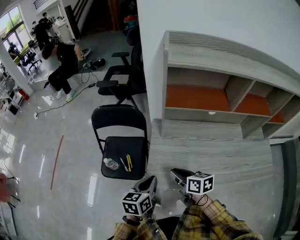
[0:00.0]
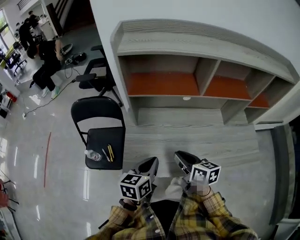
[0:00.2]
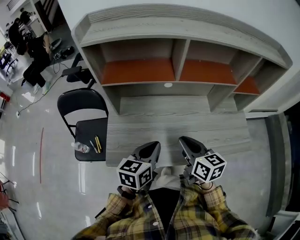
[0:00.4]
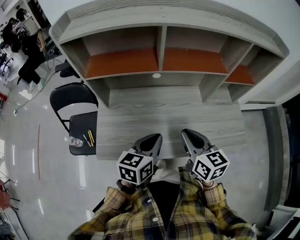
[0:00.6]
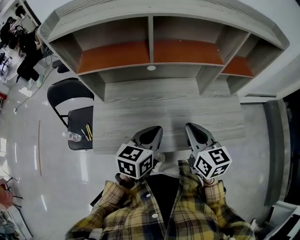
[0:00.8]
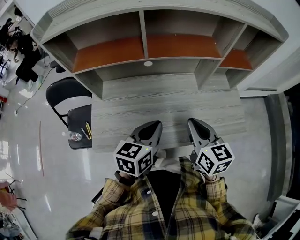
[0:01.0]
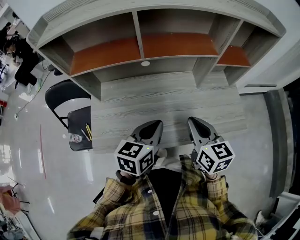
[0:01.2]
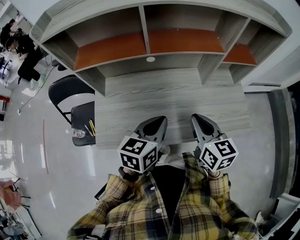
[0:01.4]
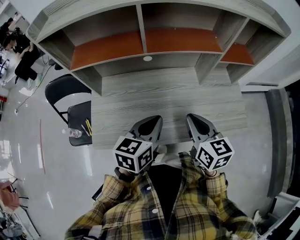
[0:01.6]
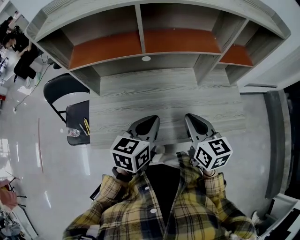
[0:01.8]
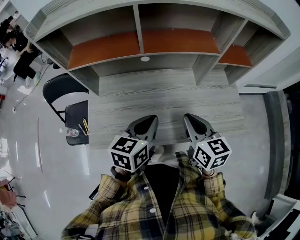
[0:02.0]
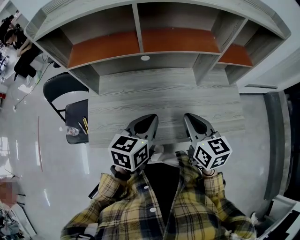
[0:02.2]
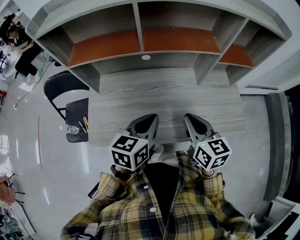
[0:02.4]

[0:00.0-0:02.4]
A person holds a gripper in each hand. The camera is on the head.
0:00.0 to 0:01.2: The left gripper ends up about 35 cm from where it was, and changes its angle by about 20 degrees, while the right gripper shifts by about 40 cm, and swivels about 40 degrees.
0:01.2 to 0:02.4: Both grippers stay about where they are.

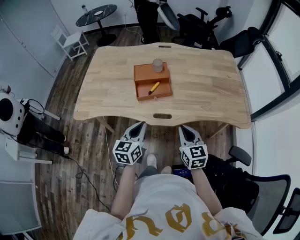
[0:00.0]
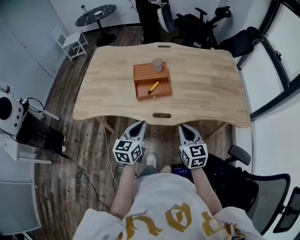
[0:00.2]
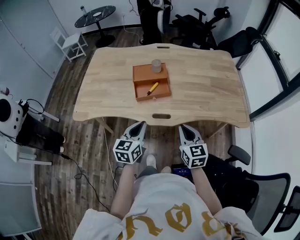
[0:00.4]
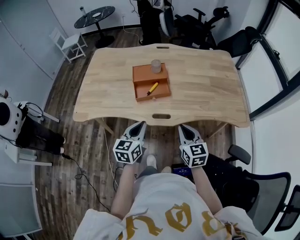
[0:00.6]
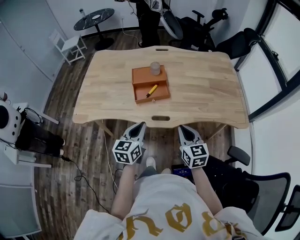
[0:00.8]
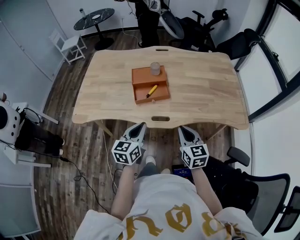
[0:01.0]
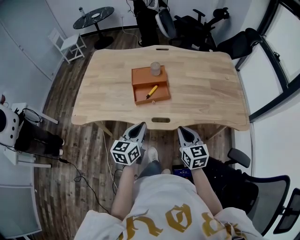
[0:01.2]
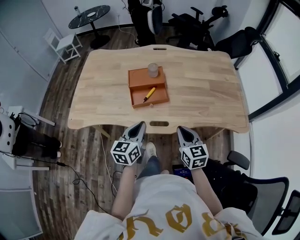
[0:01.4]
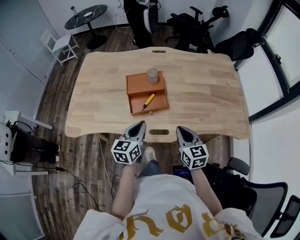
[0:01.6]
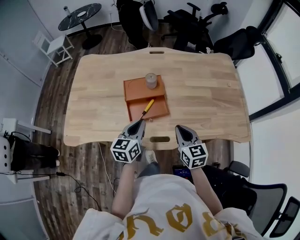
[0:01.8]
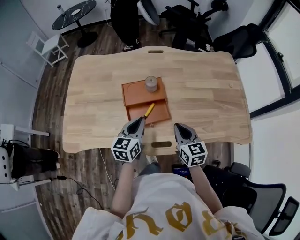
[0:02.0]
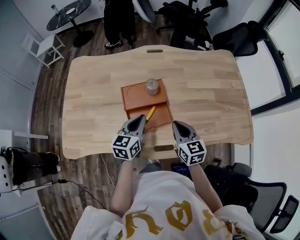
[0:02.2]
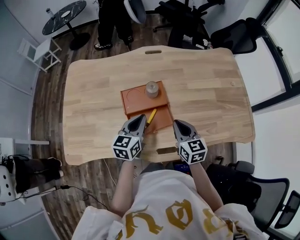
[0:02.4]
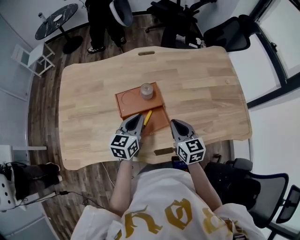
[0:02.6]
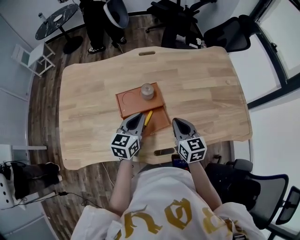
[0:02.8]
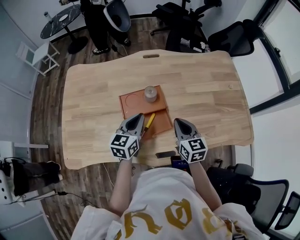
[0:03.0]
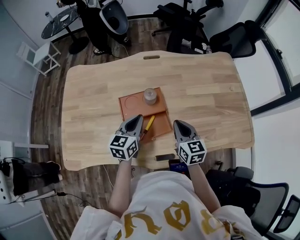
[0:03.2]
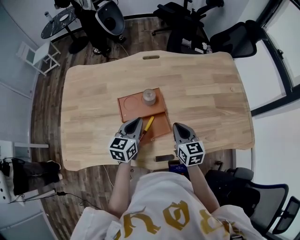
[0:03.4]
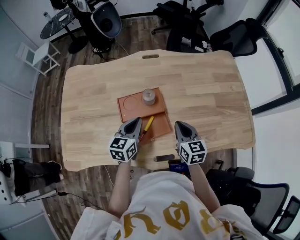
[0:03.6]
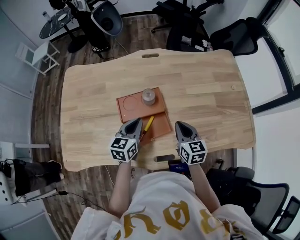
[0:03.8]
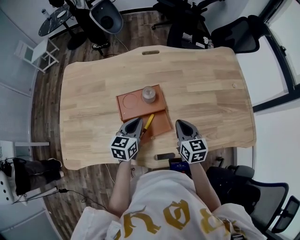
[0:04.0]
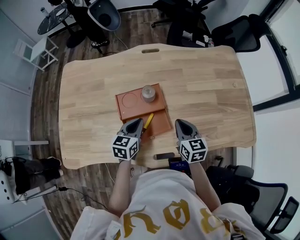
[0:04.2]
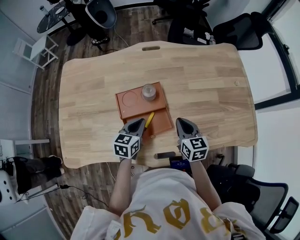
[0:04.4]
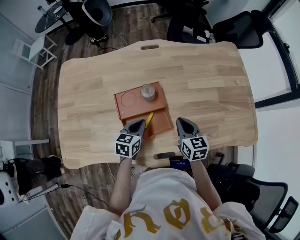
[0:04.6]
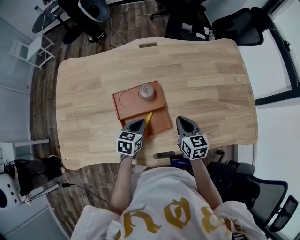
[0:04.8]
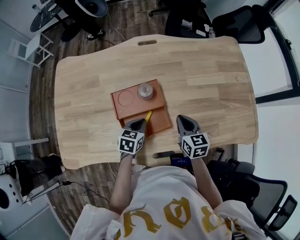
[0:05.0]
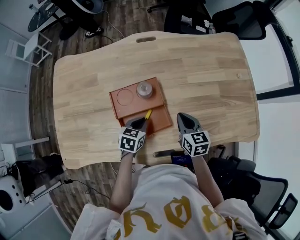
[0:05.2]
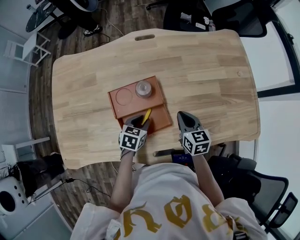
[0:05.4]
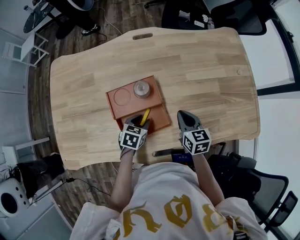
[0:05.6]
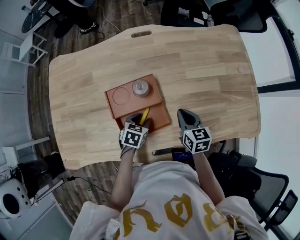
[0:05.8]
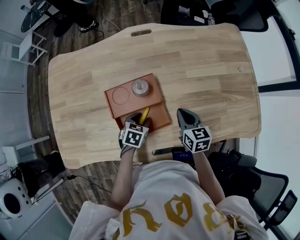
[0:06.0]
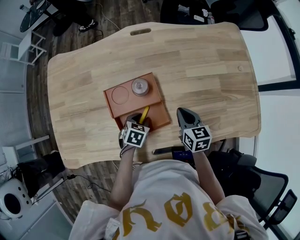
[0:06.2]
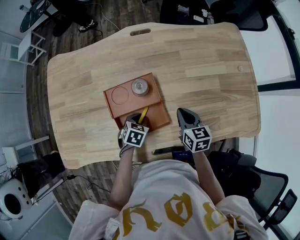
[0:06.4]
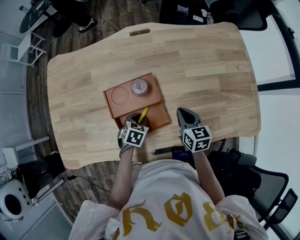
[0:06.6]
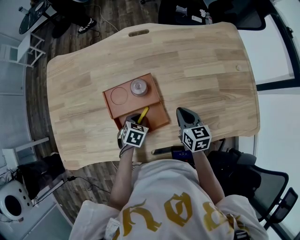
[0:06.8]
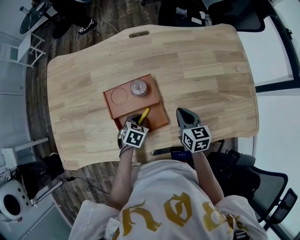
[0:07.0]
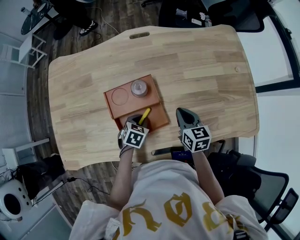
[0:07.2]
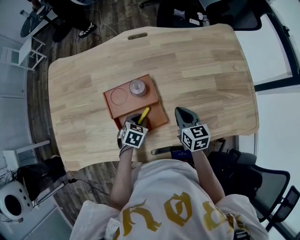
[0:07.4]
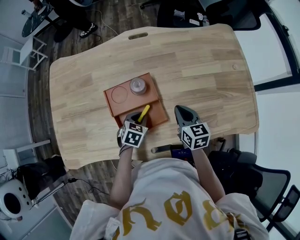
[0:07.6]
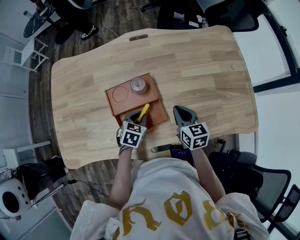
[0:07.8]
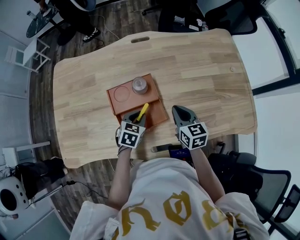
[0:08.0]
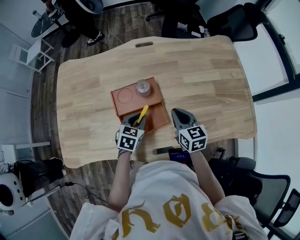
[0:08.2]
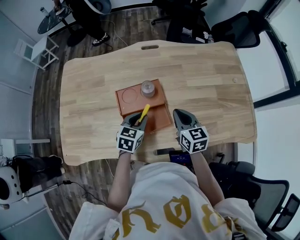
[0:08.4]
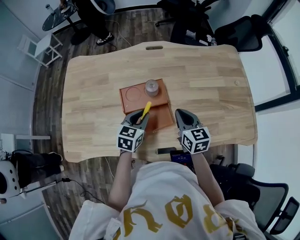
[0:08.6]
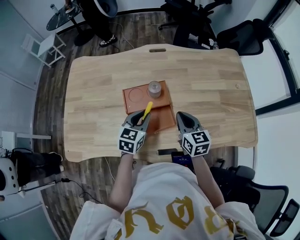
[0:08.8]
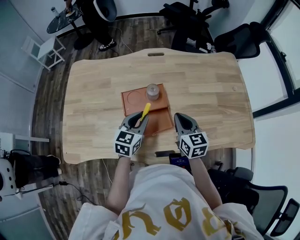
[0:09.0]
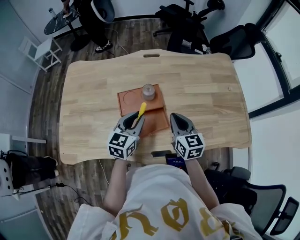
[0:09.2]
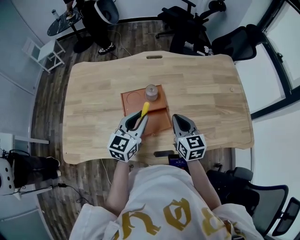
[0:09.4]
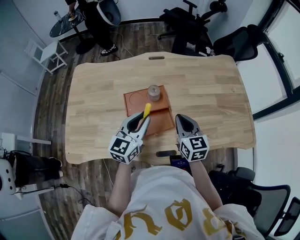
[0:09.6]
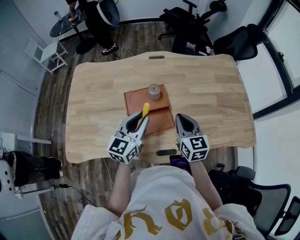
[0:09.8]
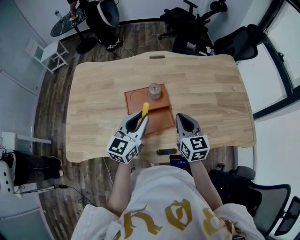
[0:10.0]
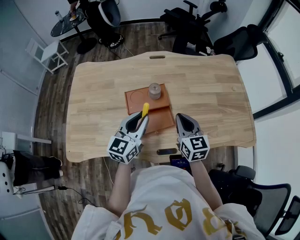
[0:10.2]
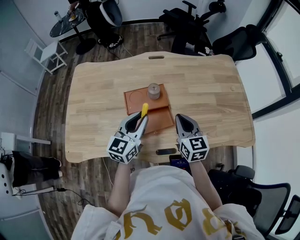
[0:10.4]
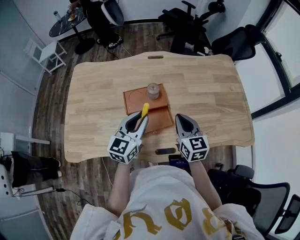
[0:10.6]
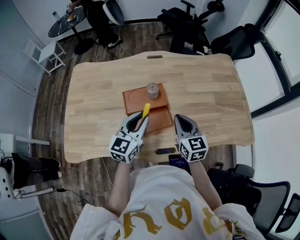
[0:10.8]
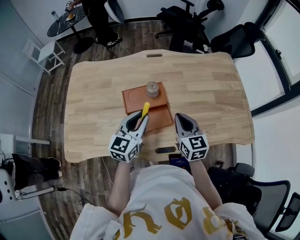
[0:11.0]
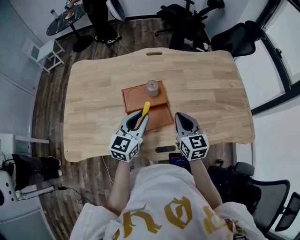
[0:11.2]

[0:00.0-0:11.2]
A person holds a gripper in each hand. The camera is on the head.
0:00.0 to 0:01.6: Both grippers travel together forward, some 10 cm.
0:01.6 to 0:03.2: The two grippers go roughly 20 cm forward.
0:03.2 to 0:04.8: The right gripper heads downward, covering approximately 5 cm, while the left gripper moves downward, some 10 cm, and swivels roughly 20 degrees.
0:04.8 to 0:06.4: The left gripper is displaced downward by roughly 10 cm, and rotates about 20 degrees.
0:06.4 to 0:08.0: The grippers both shift upward by some 5 cm.
0:08.0 to 0:09.6: The right gripper heads upward, covering about 10 cm; the left gripper goes approximately 20 cm upward, and points its fingers approximately 40 degrees further upward.
0:09.6 to 0:11.2: The grippers stay close to where they were, moving slightly.

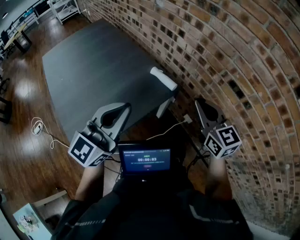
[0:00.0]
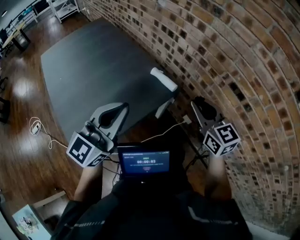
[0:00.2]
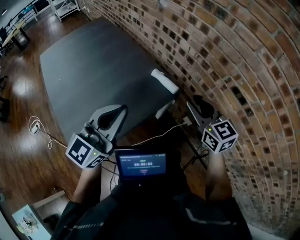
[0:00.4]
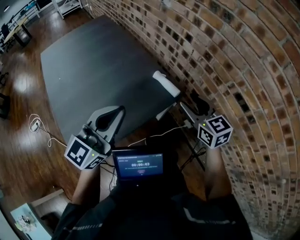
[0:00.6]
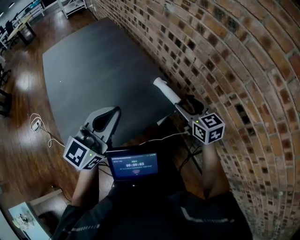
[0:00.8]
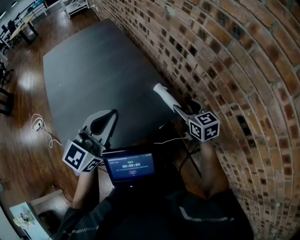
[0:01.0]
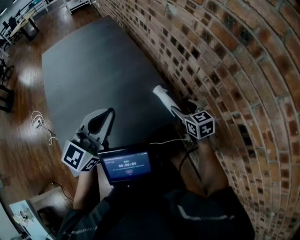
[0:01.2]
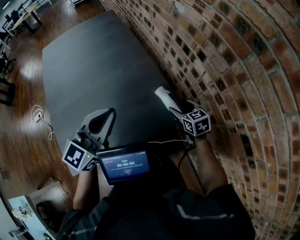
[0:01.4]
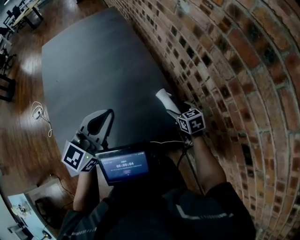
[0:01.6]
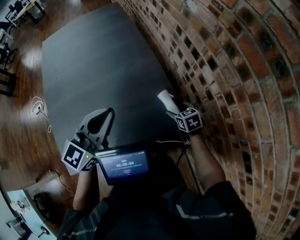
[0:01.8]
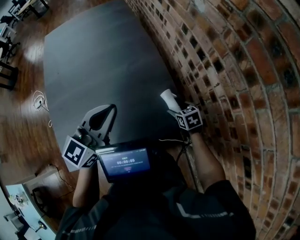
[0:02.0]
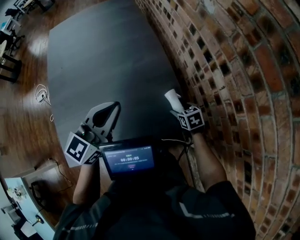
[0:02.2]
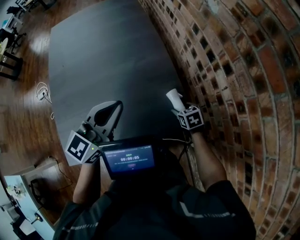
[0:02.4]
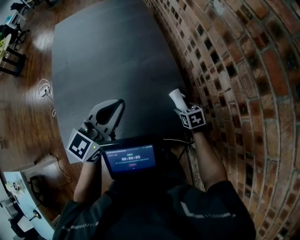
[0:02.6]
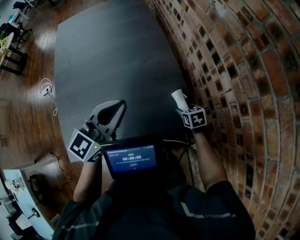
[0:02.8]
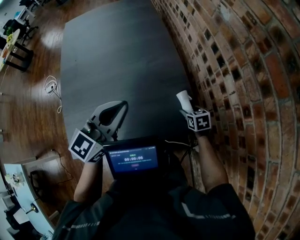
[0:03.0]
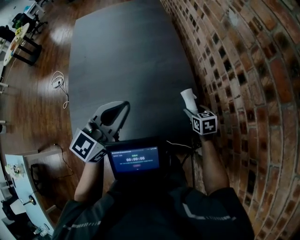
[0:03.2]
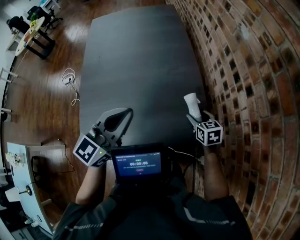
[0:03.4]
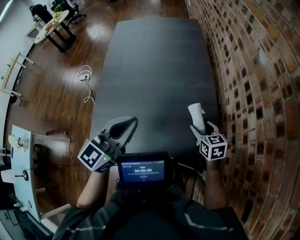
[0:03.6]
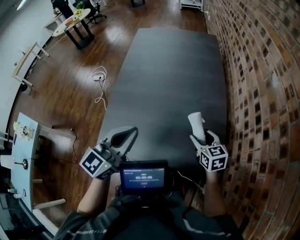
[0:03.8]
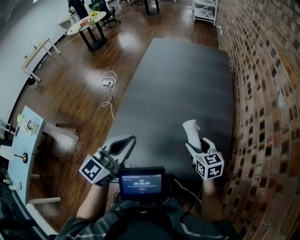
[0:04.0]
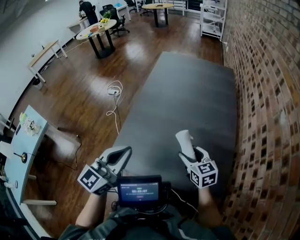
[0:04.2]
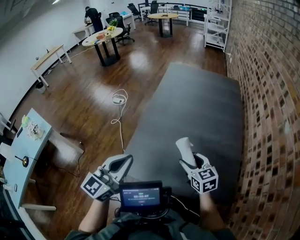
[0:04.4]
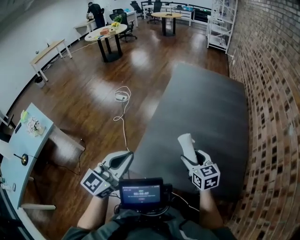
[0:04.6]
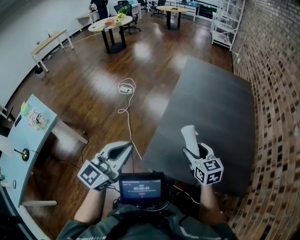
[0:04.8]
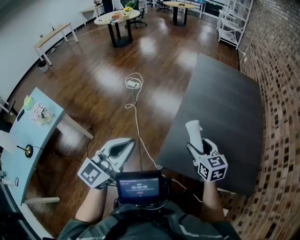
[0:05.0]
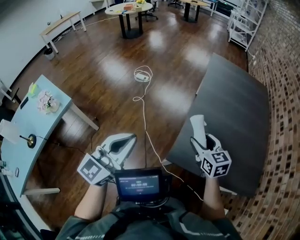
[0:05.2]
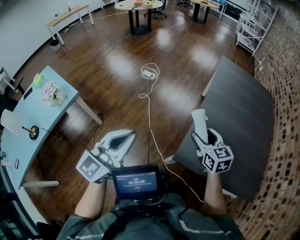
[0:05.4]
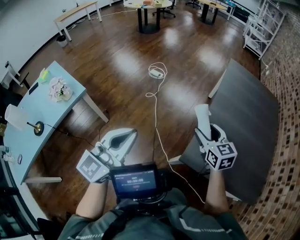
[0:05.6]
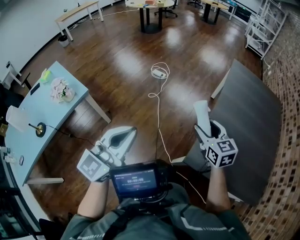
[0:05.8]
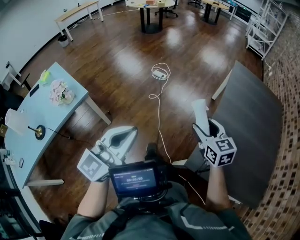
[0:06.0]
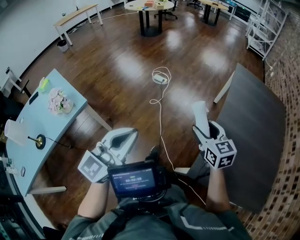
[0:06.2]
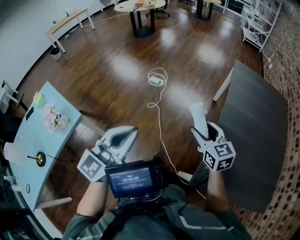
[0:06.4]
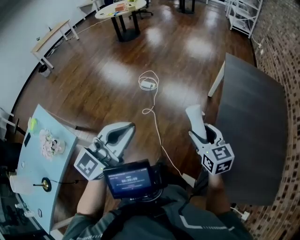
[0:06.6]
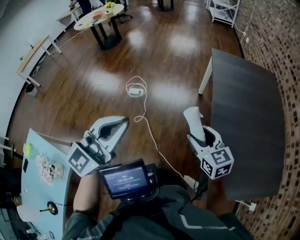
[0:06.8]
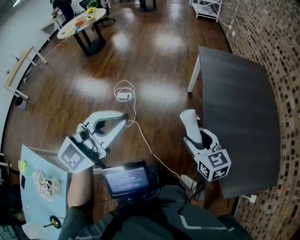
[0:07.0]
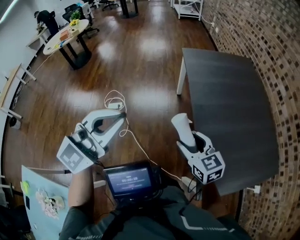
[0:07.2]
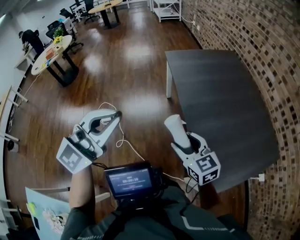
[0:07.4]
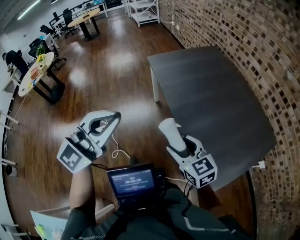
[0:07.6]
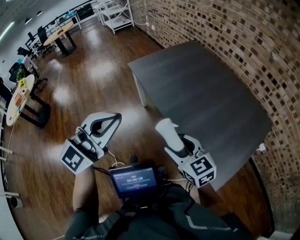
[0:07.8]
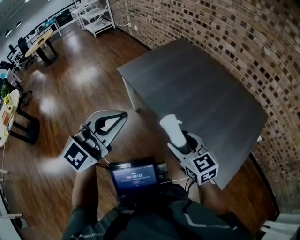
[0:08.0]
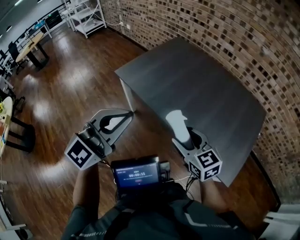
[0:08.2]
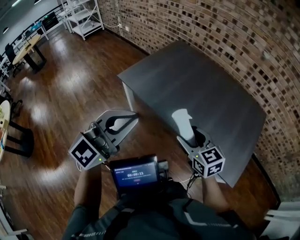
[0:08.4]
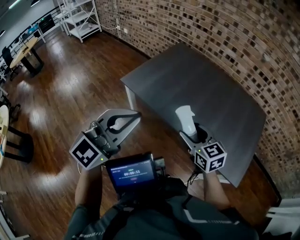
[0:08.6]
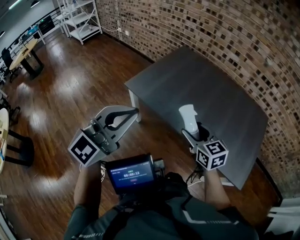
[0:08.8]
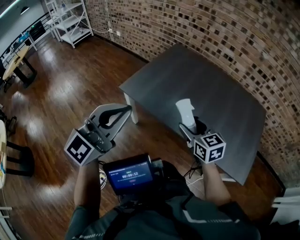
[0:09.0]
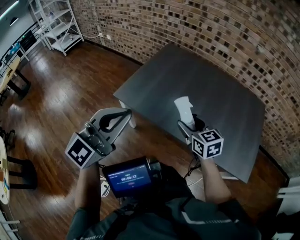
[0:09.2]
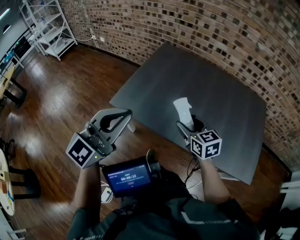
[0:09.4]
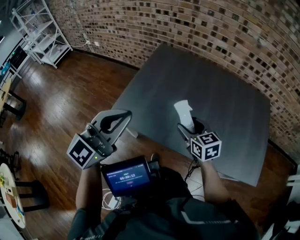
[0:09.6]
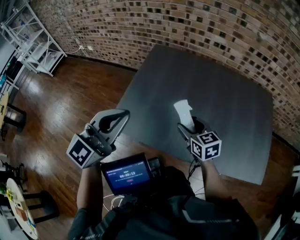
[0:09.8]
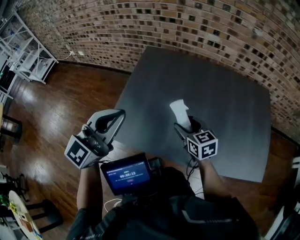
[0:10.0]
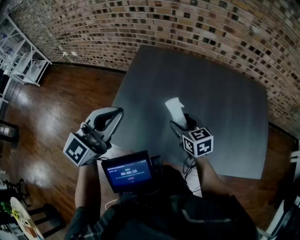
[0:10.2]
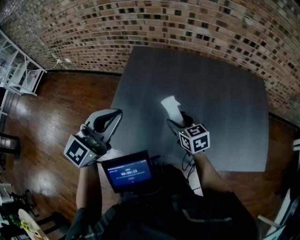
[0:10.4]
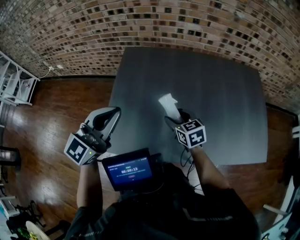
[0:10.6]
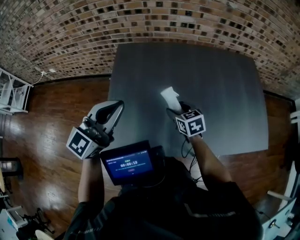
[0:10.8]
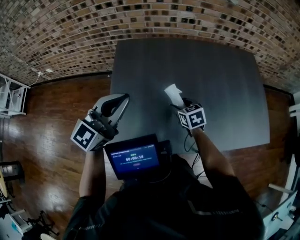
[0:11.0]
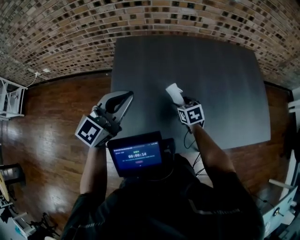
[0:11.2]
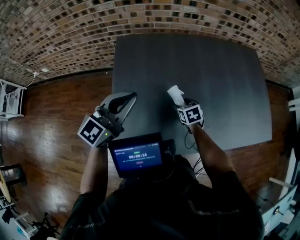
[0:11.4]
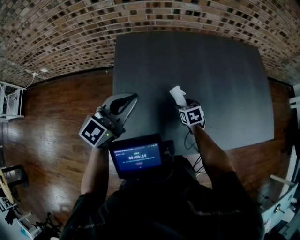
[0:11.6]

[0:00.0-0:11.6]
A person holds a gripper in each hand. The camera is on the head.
0:00.0 to 0:01.4: The right gripper is displaced forward and downward by about 35 cm, changes its angle by roughly 30 degrees, and opens its fingers; the left gripper travels forward by some 20 cm.
0:01.4 to 0:02.8: The left gripper heads forward, covering about 5 cm; the right gripper goes some 15 cm downward, and turns by approximately 20 degrees.
0:02.8 to 0:04.4: The right gripper changes place by approximately 40 cm, and tips its fingers upward by about 30 degrees. Meanwhile the left gripper changes place by roughly 35 cm, and swivels about 40 degrees.
0:04.4 to 0:05.8: The two grippers travel together, to the left, some 40 cm.
0:05.8 to 0:07.2: The left gripper changes place by some 40 cm, and changes its angle by roughly 50 degrees, while the right gripper shifts by roughly 25 cm, and rotates approximately 30 degrees.
0:07.2 to 0:08.8: The right gripper changes place by some 30 cm, and rotates roughly 50 degrees. The left gripper shifts by approximately 40 cm, and rotates about 50 degrees.
0:08.8 to 0:10.2: The two grippers go some 35 cm forward. The right gripper rotates approximately 30 degrees. Meanwhile the left gripper swivels some 20 degrees.
0:10.2 to 0:11.6: The left gripper heads forward and downward, covering roughly 20 cm, and changes its angle by approximately 20 degrees. Meanwhile the right gripper travels downward and forward by about 20 cm, and changes its angle by roughly 30 degrees.
